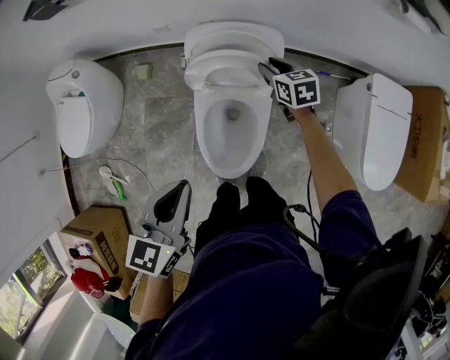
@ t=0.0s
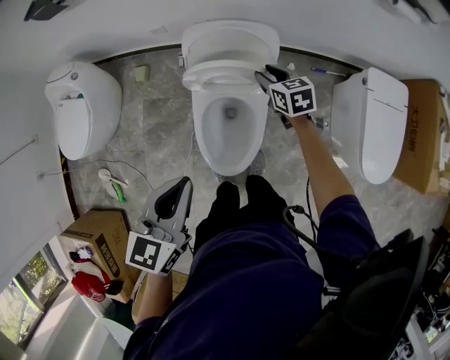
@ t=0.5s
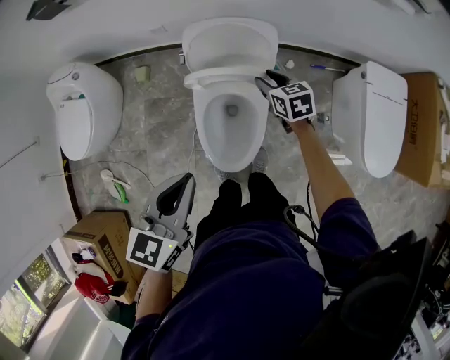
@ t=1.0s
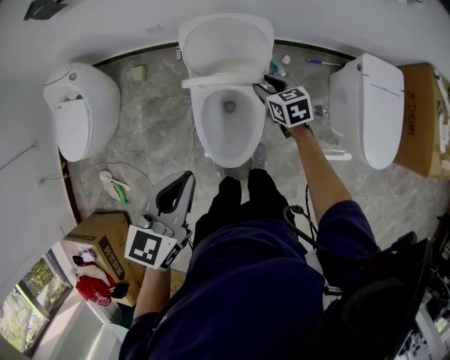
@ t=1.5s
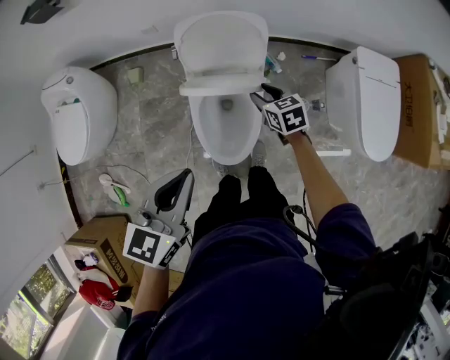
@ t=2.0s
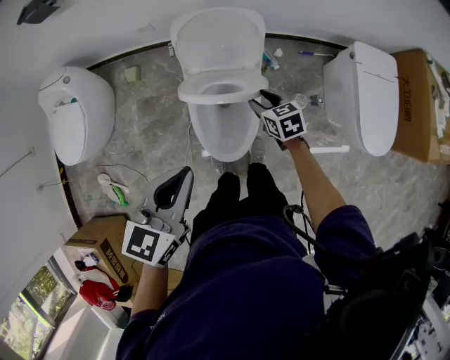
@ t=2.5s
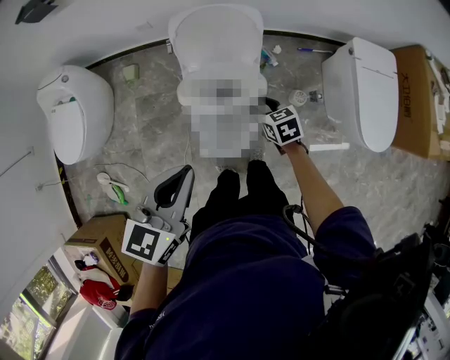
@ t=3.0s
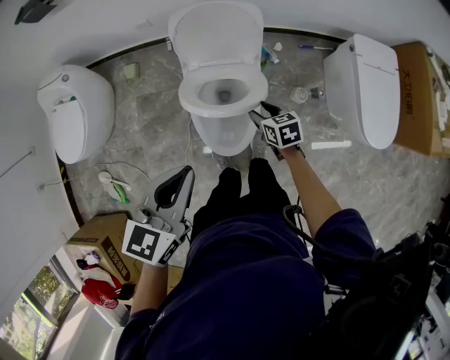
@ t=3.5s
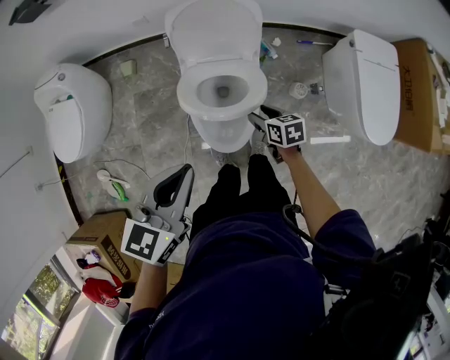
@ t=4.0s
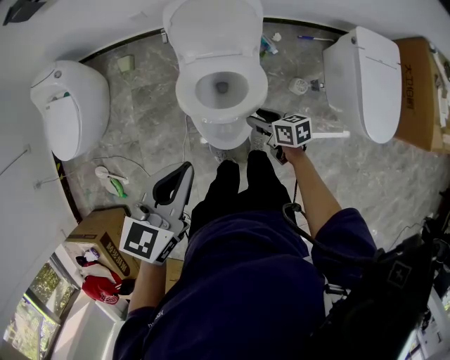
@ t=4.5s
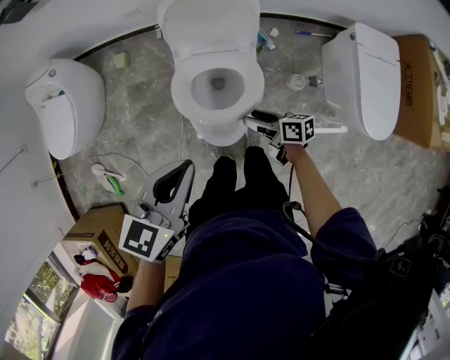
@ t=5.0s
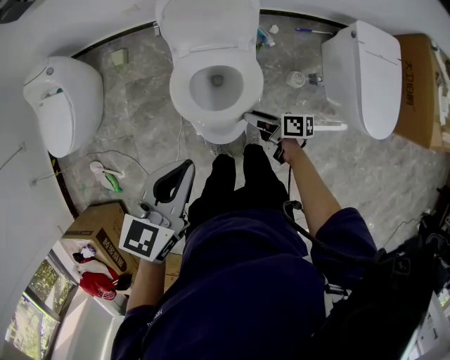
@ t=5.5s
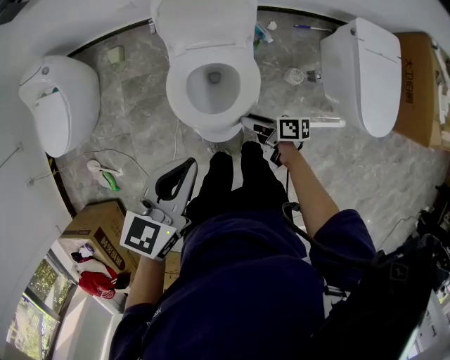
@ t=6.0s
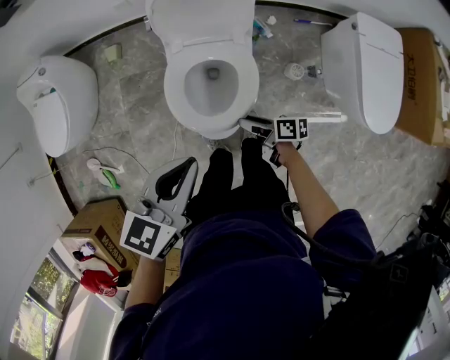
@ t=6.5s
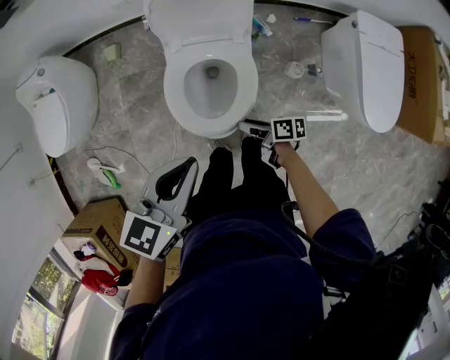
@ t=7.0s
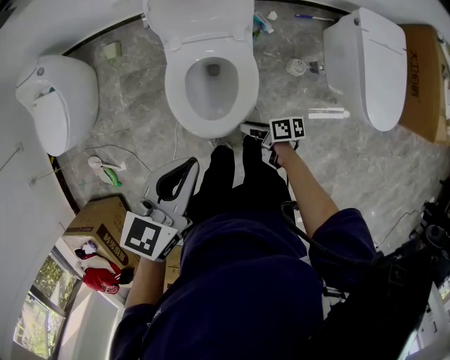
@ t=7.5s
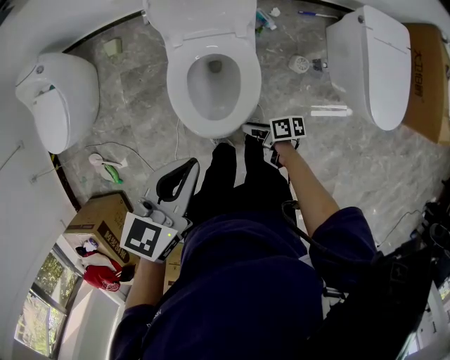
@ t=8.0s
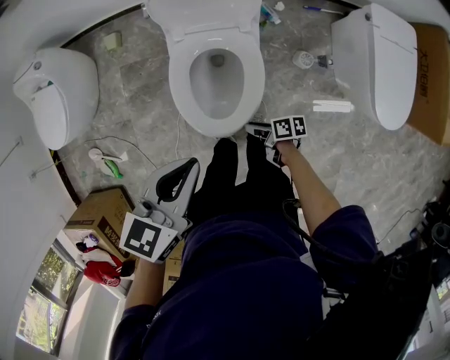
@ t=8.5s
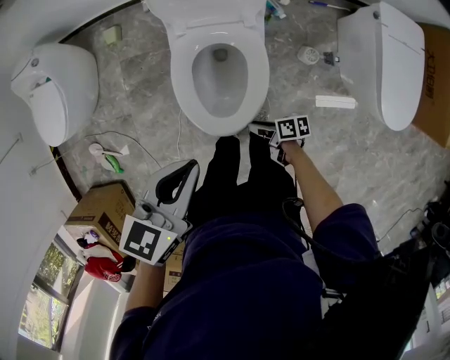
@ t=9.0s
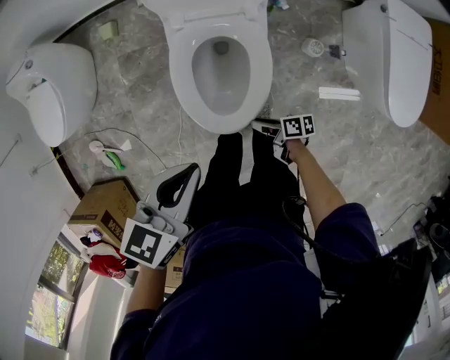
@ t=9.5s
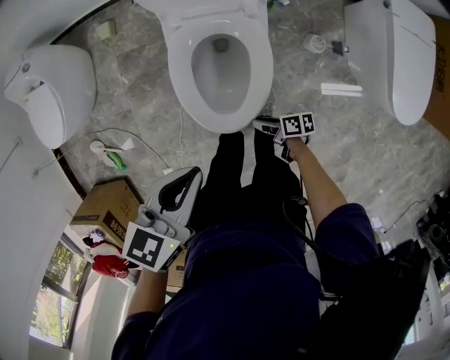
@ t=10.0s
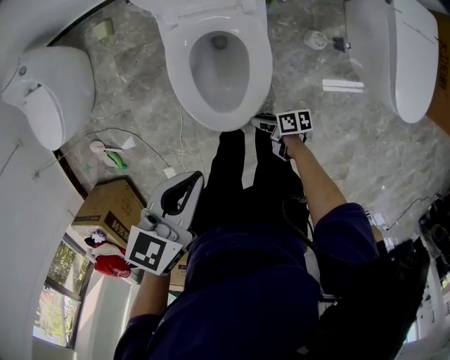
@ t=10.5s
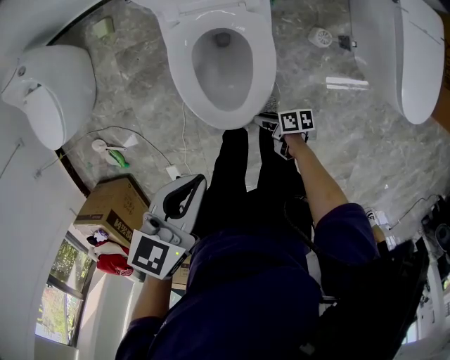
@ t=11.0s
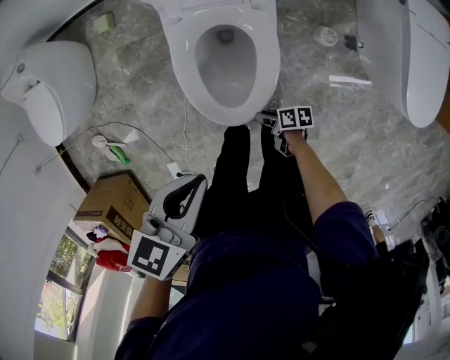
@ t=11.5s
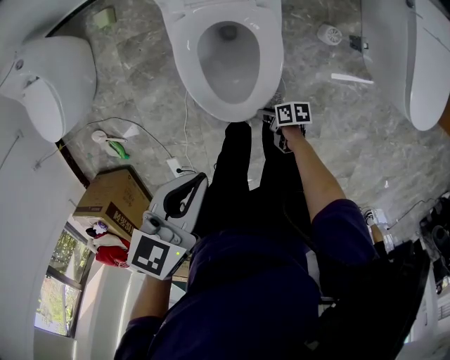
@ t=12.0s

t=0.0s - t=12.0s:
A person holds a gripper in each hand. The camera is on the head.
t=0.0s - t=2.0s: The left gripper shifts roughly 5 cm backward. The right gripper heads backward, covering some 15 cm.
t=2.0s - t=4.0s: The right gripper moves backward and downward, about 15 cm, and turns by approximately 20 degrees.
t=4.0s - t=6.0s: The right gripper moves approximately 5 cm, and turns by about 40 degrees.
t=6.0s - t=8.0s: The right gripper goes about 10 cm downward and backward.
t=8.0s - t=10.0s: The two grippers go some 10 cm downward.
t=10.0s - t=12.0s: The right gripper is displaced downward by some 10 cm.

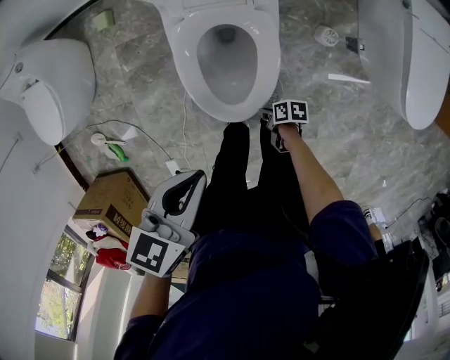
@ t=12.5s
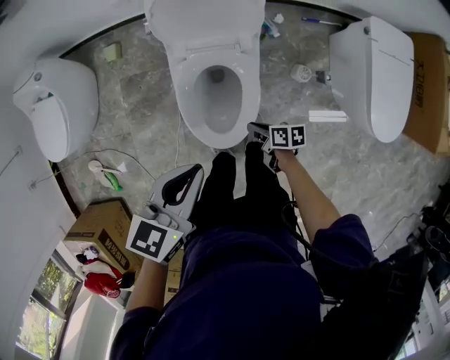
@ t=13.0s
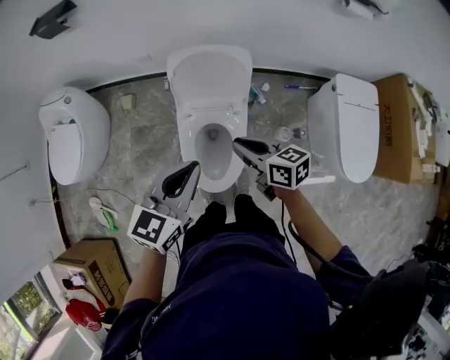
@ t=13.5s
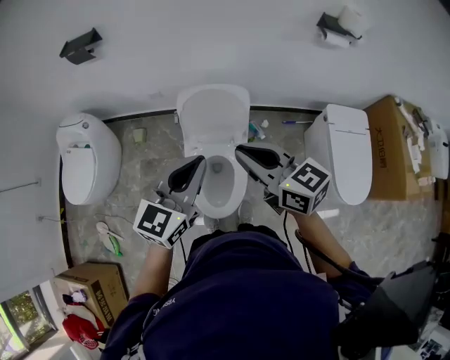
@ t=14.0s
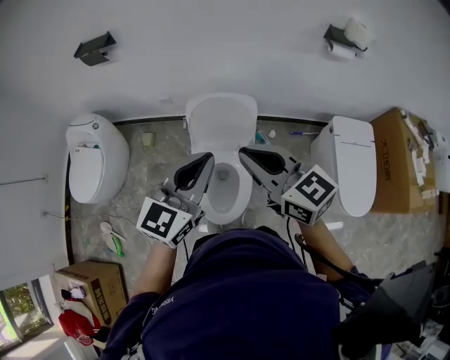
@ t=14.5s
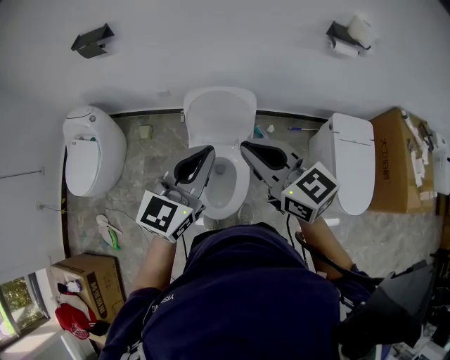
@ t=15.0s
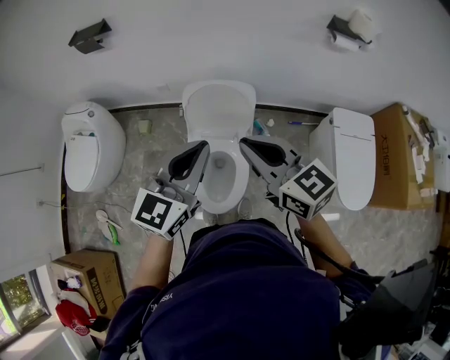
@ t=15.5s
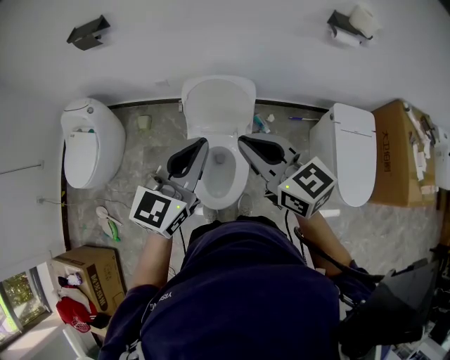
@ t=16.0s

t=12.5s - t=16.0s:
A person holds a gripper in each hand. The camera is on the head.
t=12.5s - t=14.5s: The right gripper goes some 70 cm upward, and twists about 80 degrees counterclockwise, seen from behind. The left gripper heads upward, covering roughly 30 cm, and angles its fingers upward, by roughly 40 degrees.
t=14.5s - t=16.0s: There are only small adjustments of the grippers.

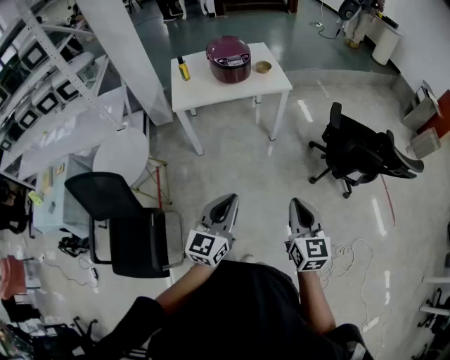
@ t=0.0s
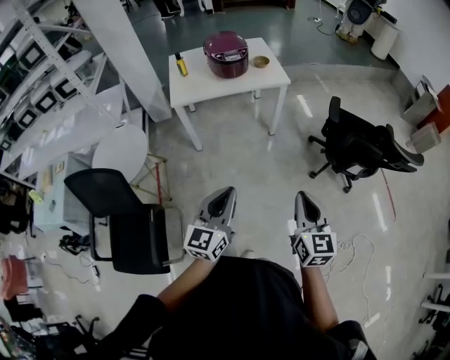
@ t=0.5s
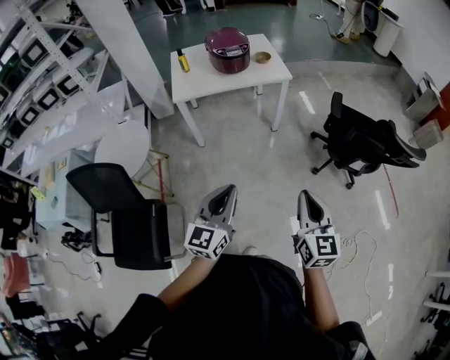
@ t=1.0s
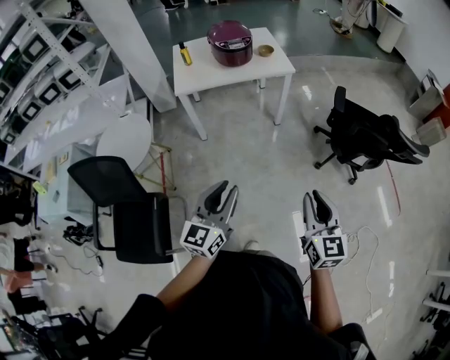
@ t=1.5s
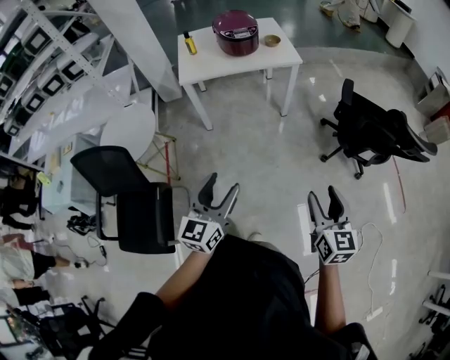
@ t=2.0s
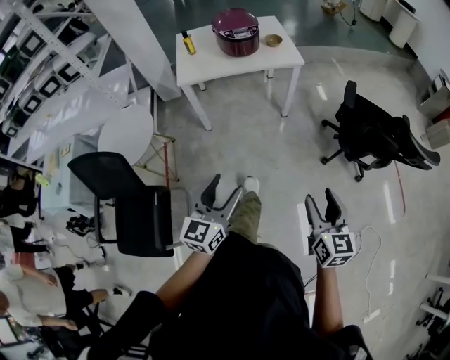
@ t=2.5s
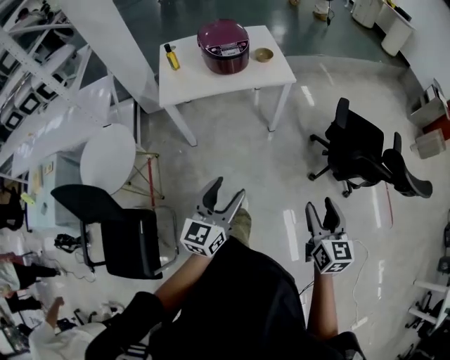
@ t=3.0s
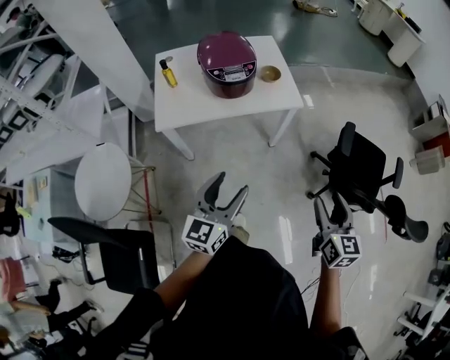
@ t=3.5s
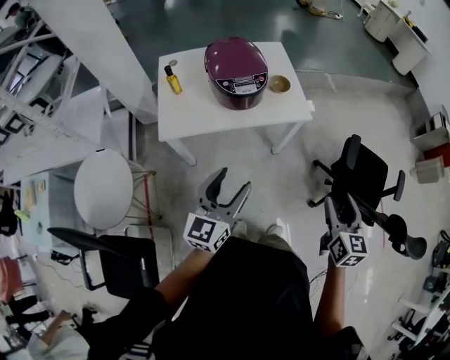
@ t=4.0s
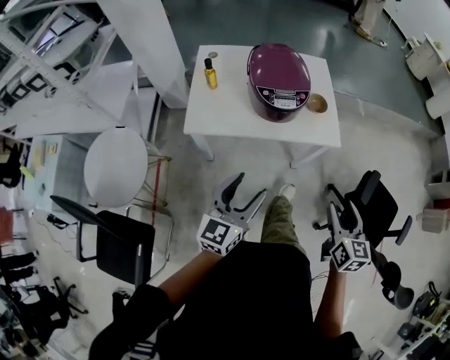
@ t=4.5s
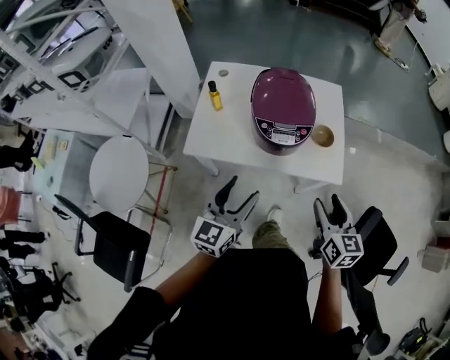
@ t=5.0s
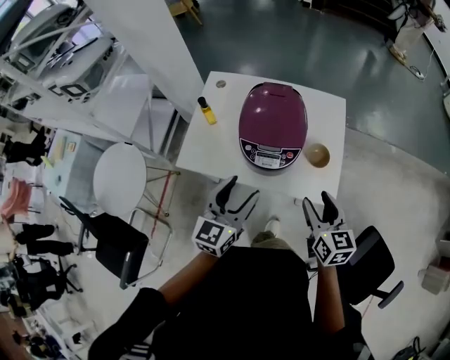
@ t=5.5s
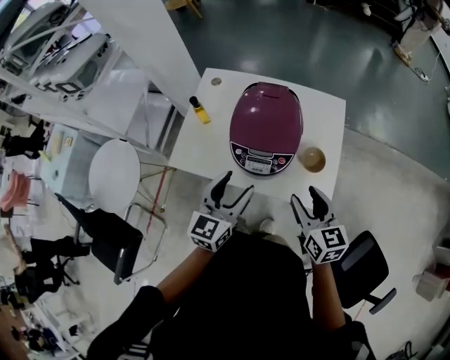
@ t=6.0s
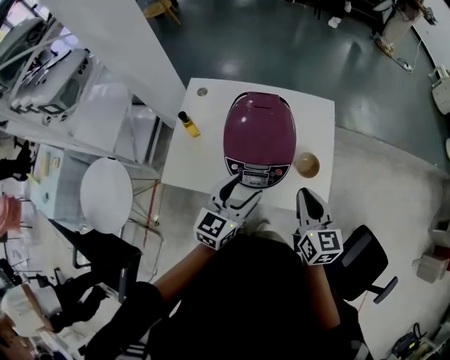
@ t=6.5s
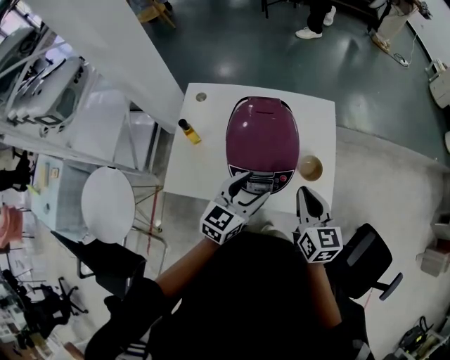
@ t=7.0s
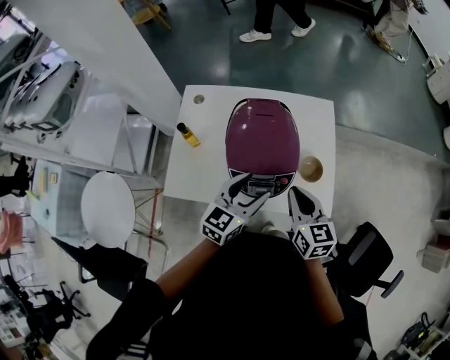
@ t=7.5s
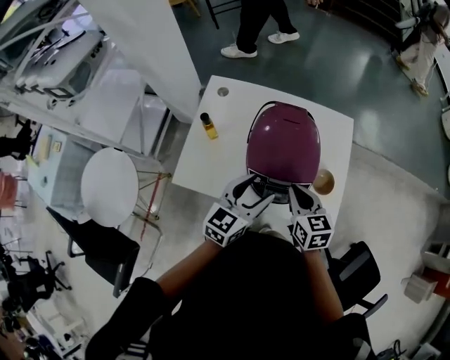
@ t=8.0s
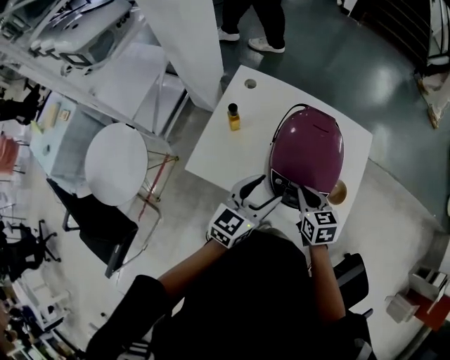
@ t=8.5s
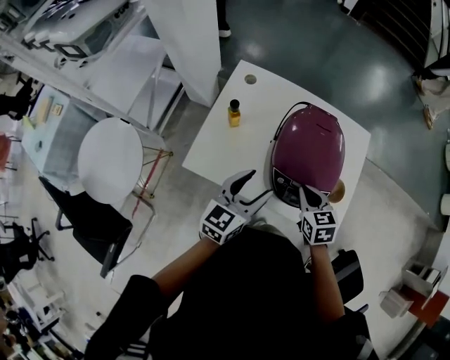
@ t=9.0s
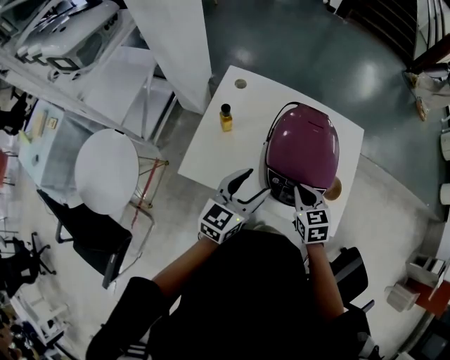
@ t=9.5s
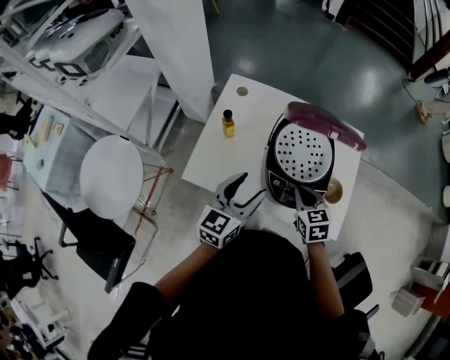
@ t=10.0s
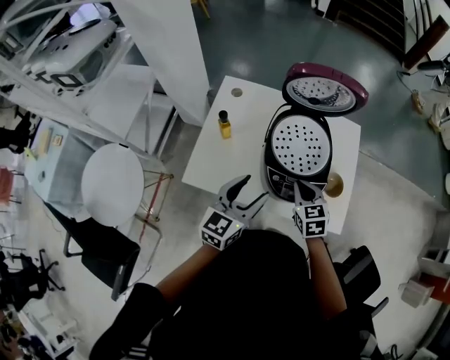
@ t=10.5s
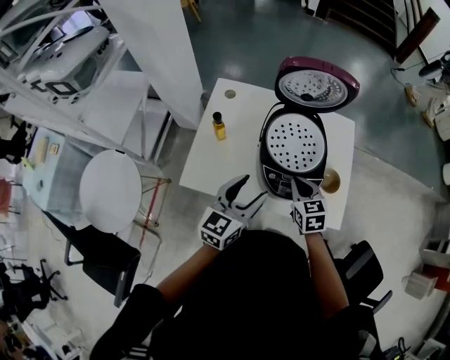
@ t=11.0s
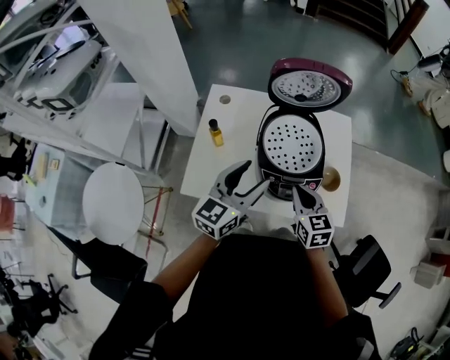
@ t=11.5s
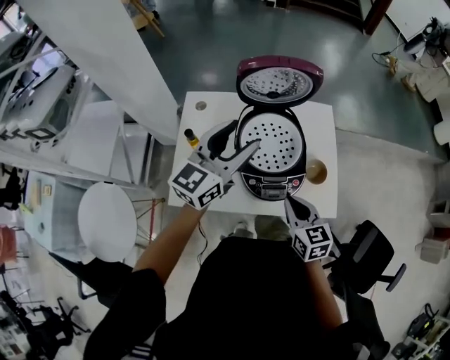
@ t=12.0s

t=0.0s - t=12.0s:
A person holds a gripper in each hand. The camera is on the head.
t=0.0s - t=2.0s: The right gripper travels to the right by roughly 5 cm, and opens up; the left gripper opens.
t=2.0s - t=4.0s: The two grippers travel together, forward, some 40 cm.
t=4.0s - t=6.0s: The right gripper changes place by about 40 cm, and changes its angle by about 40 degrees. The left gripper ends up roughly 30 cm from where it was, and turns by roughly 30 degrees.
t=6.0s - t=8.0s: The right gripper is displaced to the left, forward and downward by roughly 15 cm, and closes its fingers. The left gripper moves forward, approximately 10 cm.
t=8.0s - t=10.0s: The right gripper is displaced downward by about 5 cm. The left gripper shifts some 10 cm to the left.
t=10.0s - t=12.0s: The left gripper travels upward and forward by some 20 cm, and rotates roughly 20 degrees, while the right gripper is displaced backward and upward by some 10 cm, and rotates approximately 20 degrees.
